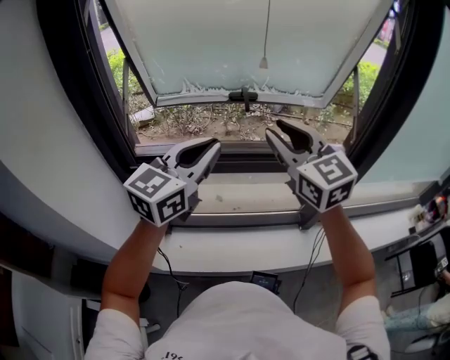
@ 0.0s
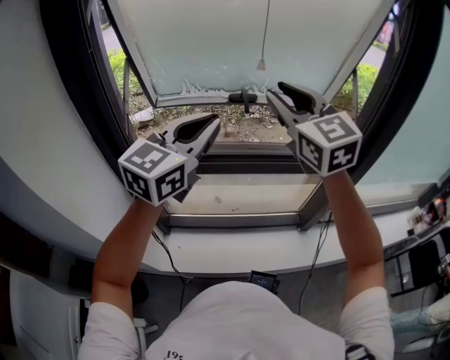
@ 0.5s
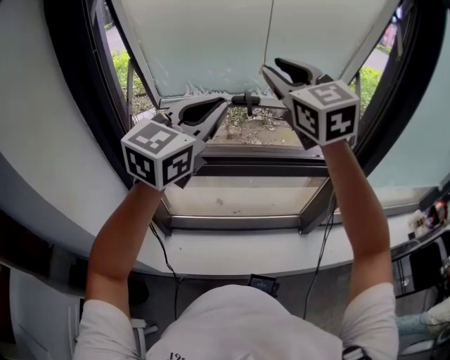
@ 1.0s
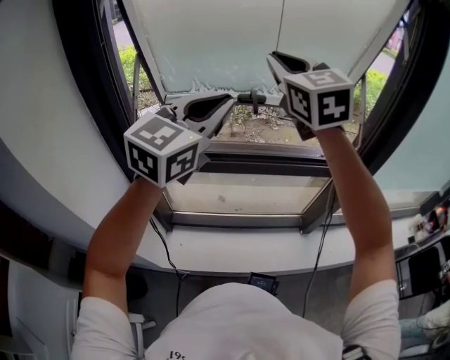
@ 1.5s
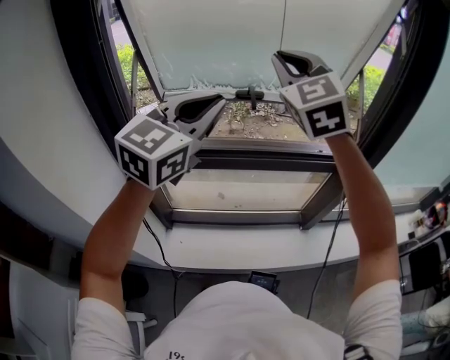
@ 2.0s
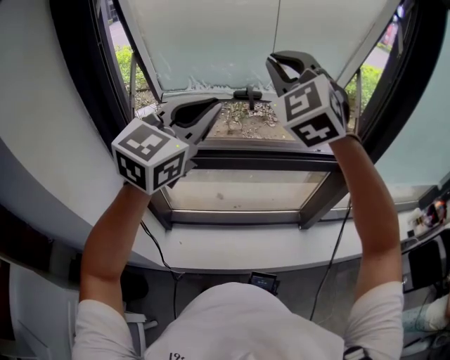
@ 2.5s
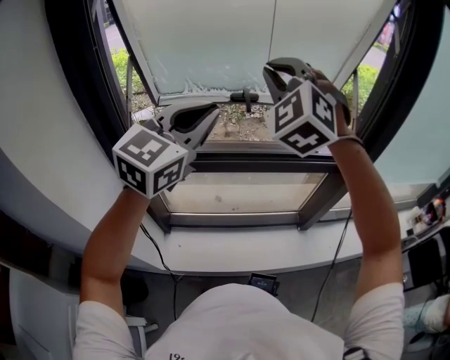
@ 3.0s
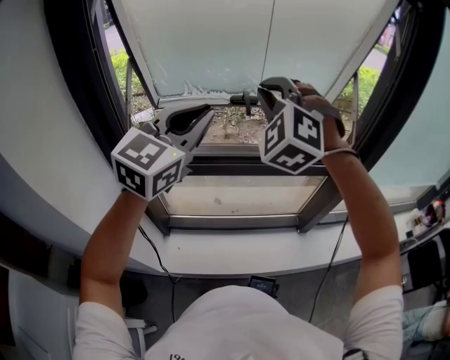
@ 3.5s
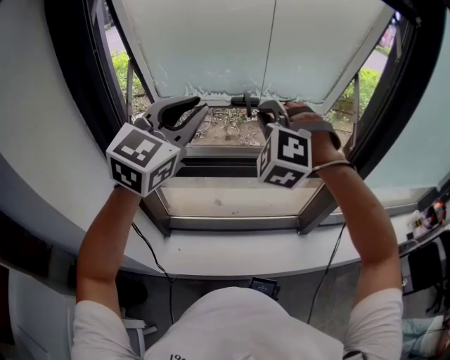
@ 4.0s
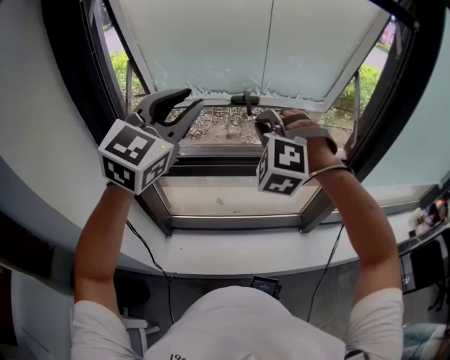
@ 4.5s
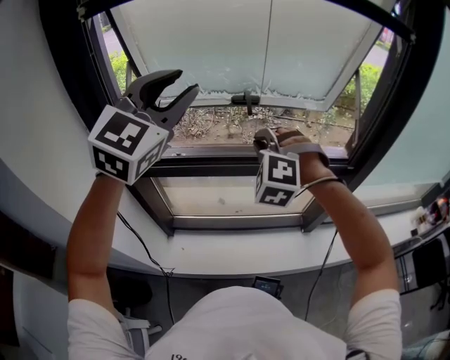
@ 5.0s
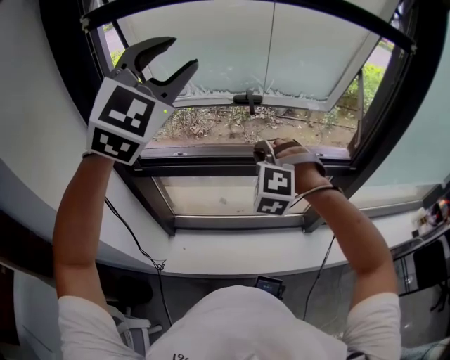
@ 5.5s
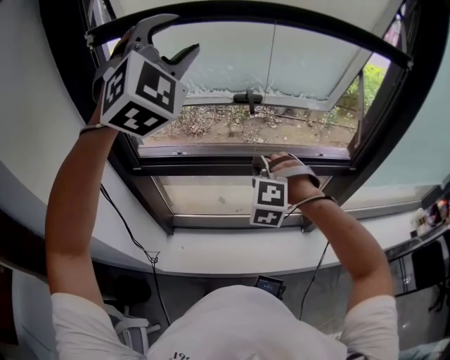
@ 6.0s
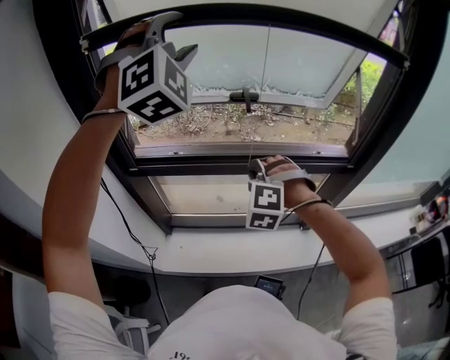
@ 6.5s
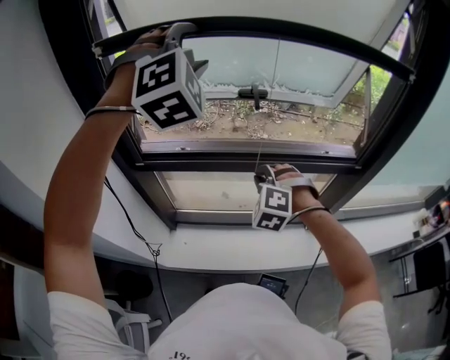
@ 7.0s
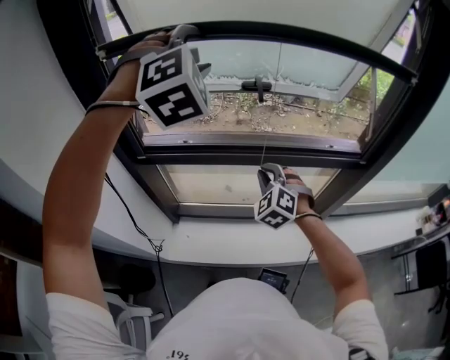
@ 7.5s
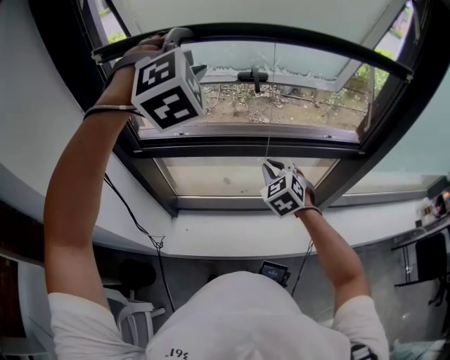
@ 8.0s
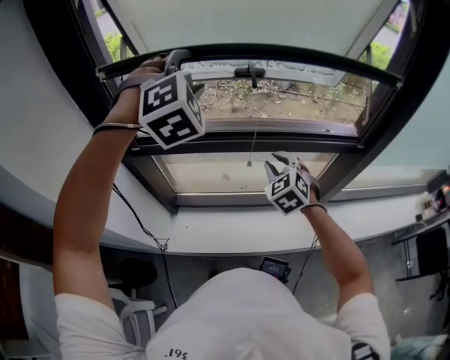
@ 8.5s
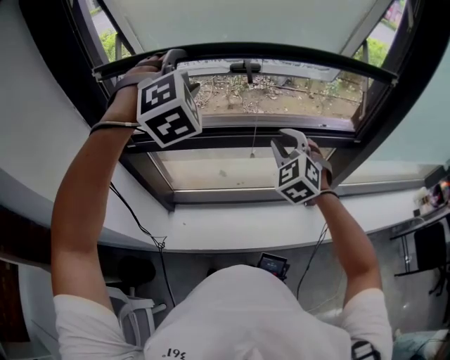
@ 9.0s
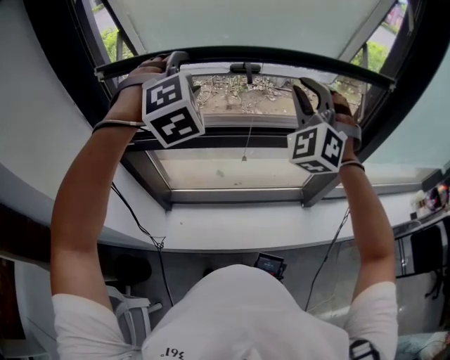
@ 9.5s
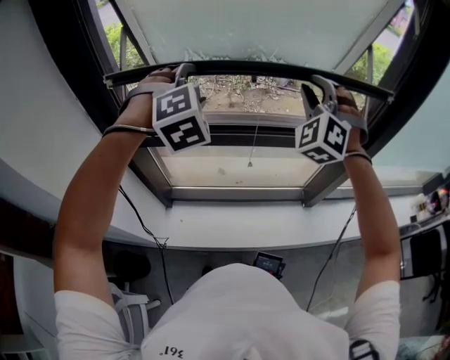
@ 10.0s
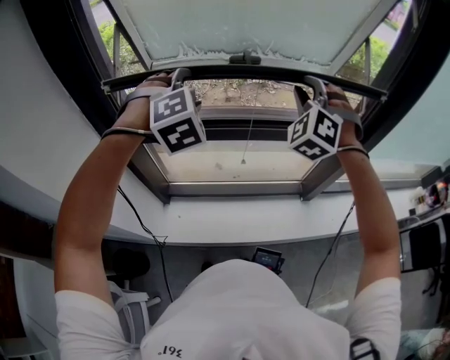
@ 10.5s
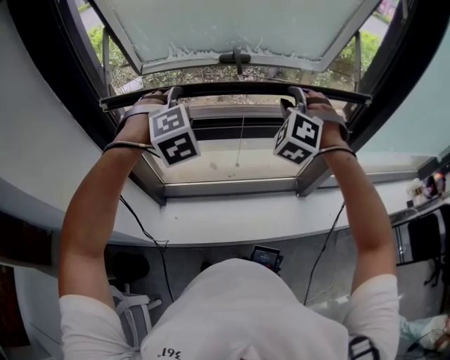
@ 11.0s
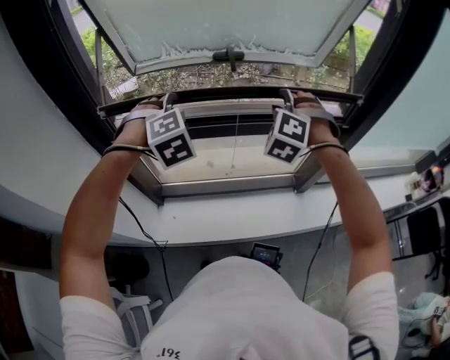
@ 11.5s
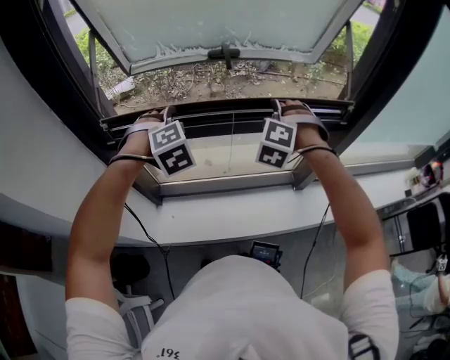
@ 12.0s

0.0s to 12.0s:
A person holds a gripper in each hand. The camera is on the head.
0.0s to 2.0s: The left gripper is displaced upward by approximately 10 cm; the right gripper goes about 15 cm upward and forward, changes its angle by approximately 30 degrees, and closes.
2.0s to 4.0s: The right gripper is displaced downward by about 15 cm, and twists roughly 40 degrees counterclockwise, seen from behind.
4.0s to 6.0s: The left gripper travels upward by roughly 10 cm, rolls clockwise, seen from behind, by some 40 degrees, and opens; the right gripper travels downward by roughly 15 cm.
6.0s to 8.0s: Both grippers travel together downward, about 10 cm. The left gripper rotates about 30 degrees; the right gripper rotates around the line of its fingers by approximately 50 degrees, clockwise from behind.
8.0s to 10.0s: The left gripper travels downward by approximately 10 cm. Meanwhile the right gripper travels upward by about 25 cm, and rotates roughly 50 degrees.
10.0s to 12.0s: Both grippers move downward, about 15 cm. The right gripper tips its fingers downward by approximately 30 degrees.

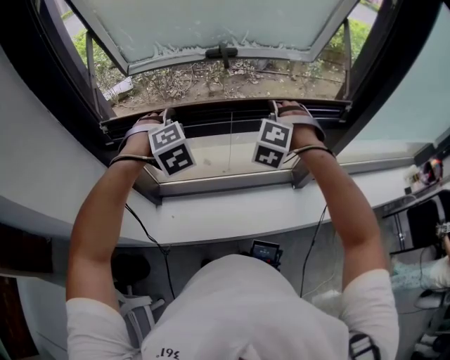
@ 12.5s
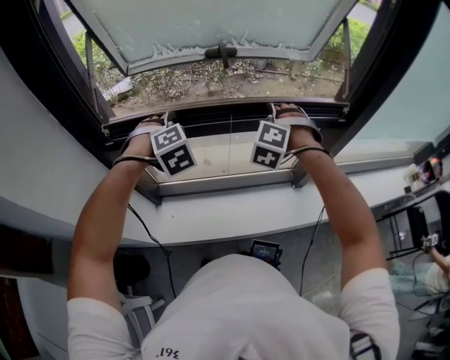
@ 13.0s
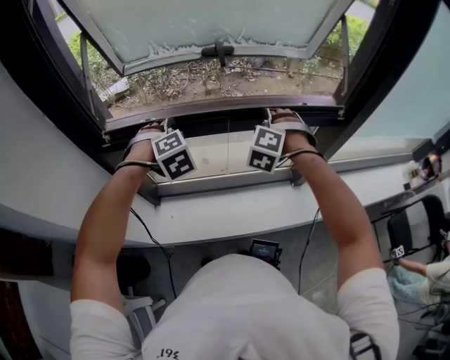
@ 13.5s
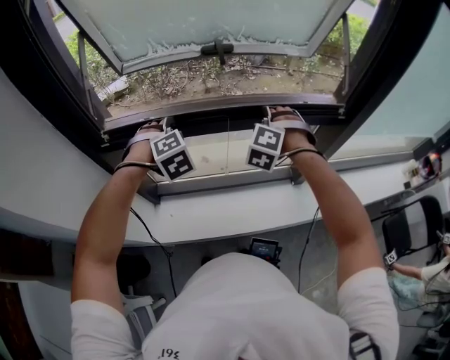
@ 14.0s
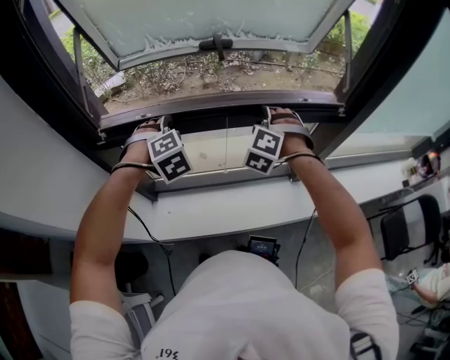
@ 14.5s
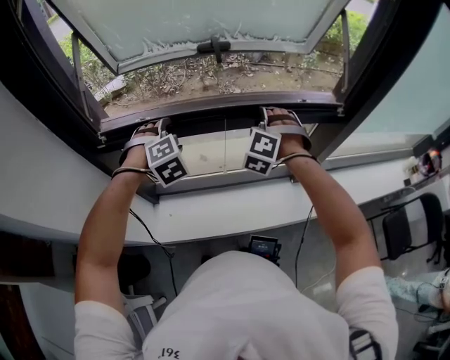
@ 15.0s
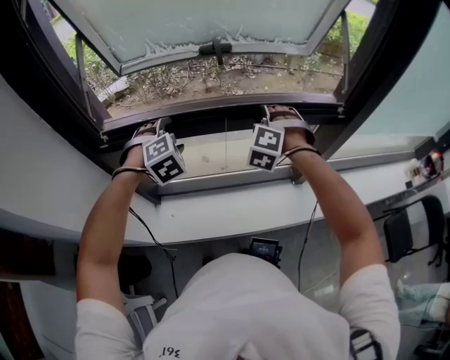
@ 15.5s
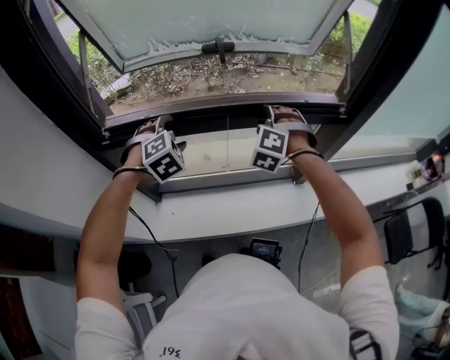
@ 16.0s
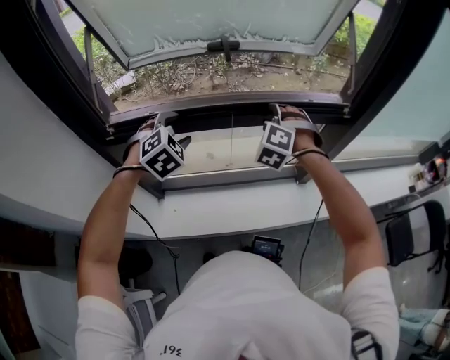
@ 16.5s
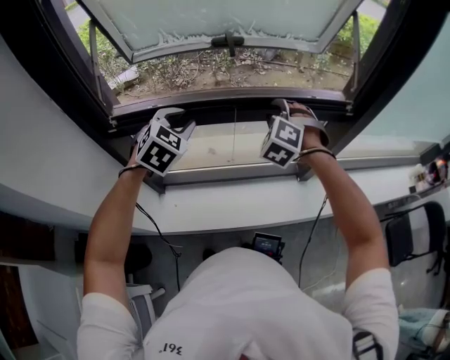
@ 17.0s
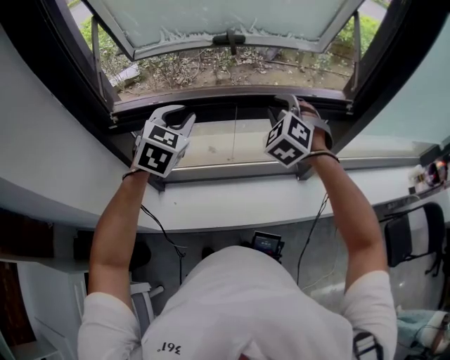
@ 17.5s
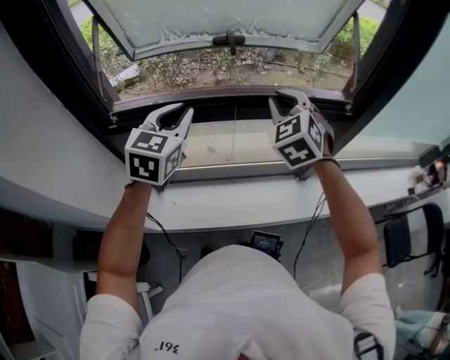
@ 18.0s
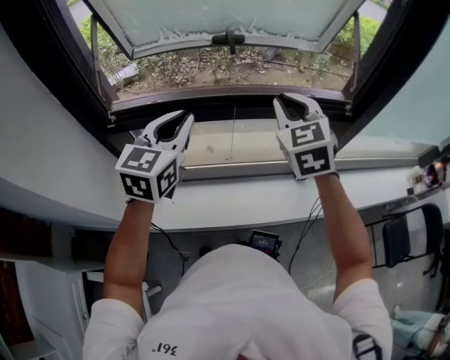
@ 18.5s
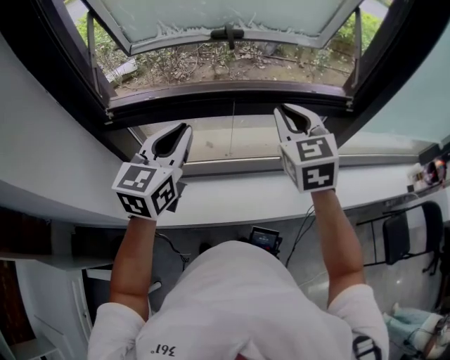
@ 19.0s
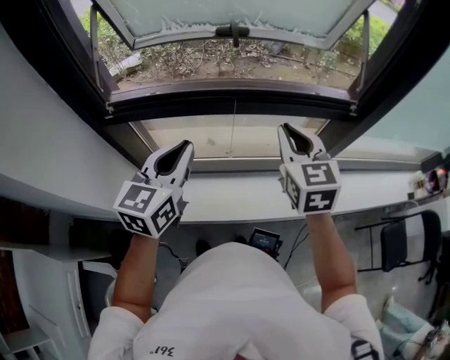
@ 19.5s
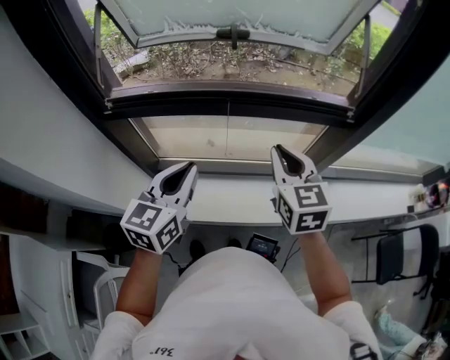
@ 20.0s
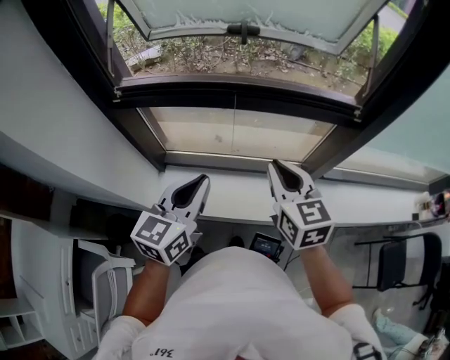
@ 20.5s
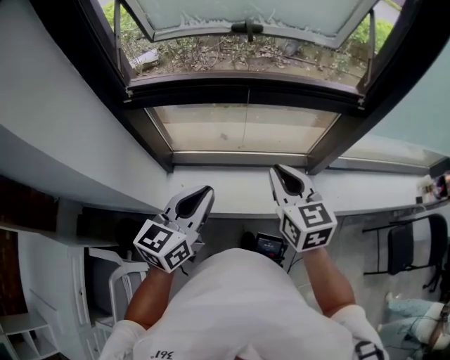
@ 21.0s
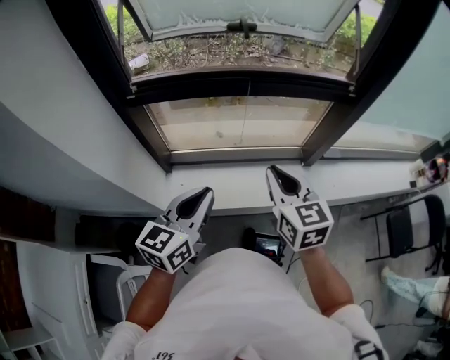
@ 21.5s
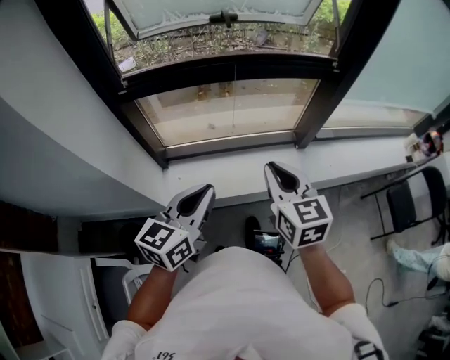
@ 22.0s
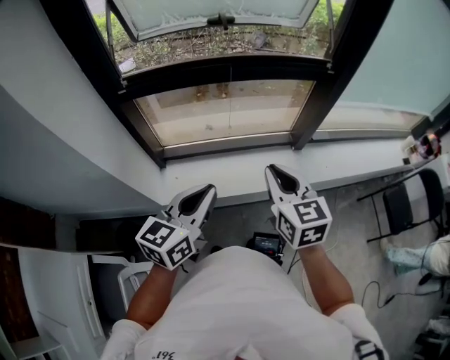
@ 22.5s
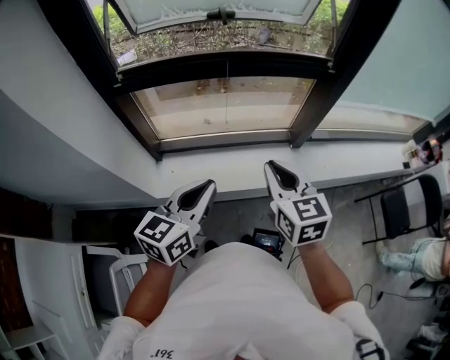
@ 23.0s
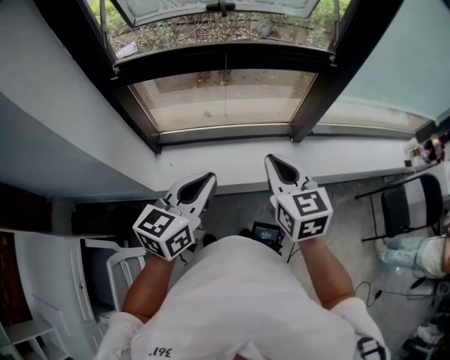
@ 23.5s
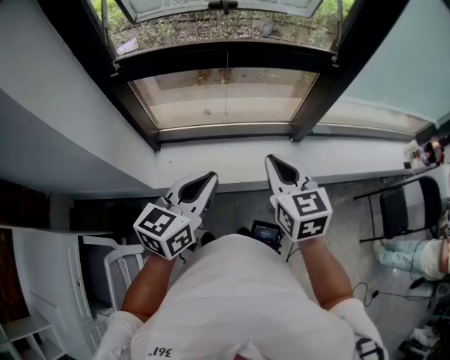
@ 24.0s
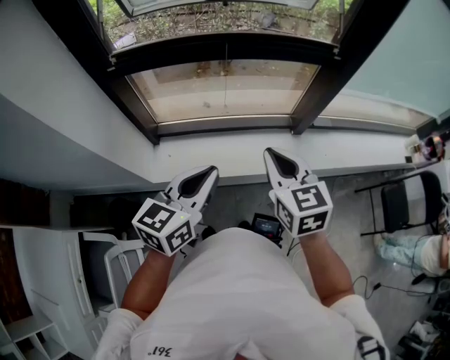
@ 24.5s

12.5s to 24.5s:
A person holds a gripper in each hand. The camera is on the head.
12.5s to 14.5s: The left gripper travels downward by about 5 cm.
14.5s to 16.5s: There are only small adjustments of the grippers.
16.5s to 18.5s: Both grippers move upward and backward, some 15 cm. The right gripper twists approximately 40 degrees clockwise, seen from behind; the left gripper tips its fingers upward by roughly 30 degrees, and closes its fingers.
18.5s to 20.5s: The right gripper goes roughly 15 cm backward and downward, and swivels roughly 30 degrees. Meanwhile the left gripper travels backward, downward and to the right by roughly 20 cm.
20.5s to 22.5s: The grippers both shift backward by some 15 cm.
22.5s to 24.5s: The grippers move only a little.

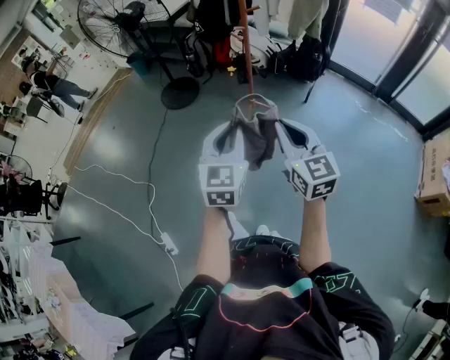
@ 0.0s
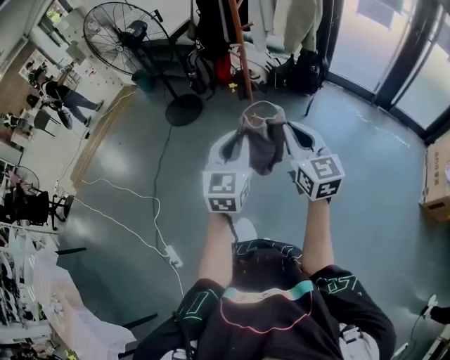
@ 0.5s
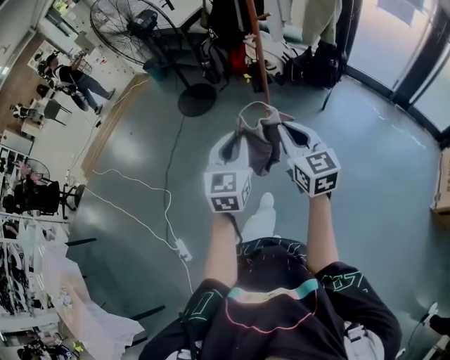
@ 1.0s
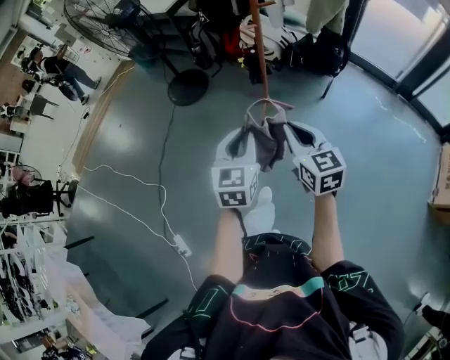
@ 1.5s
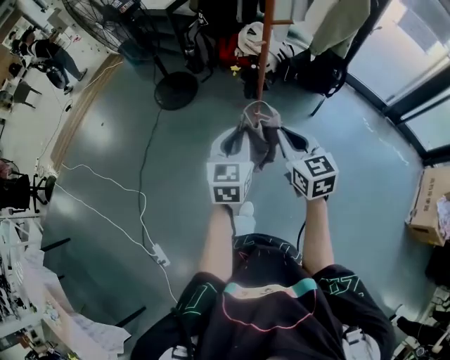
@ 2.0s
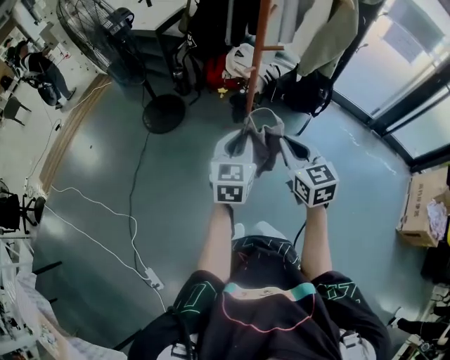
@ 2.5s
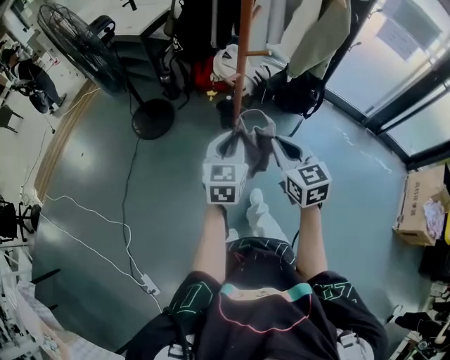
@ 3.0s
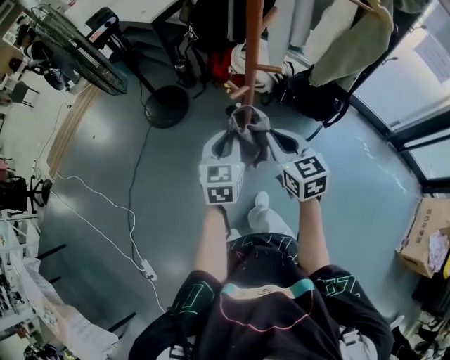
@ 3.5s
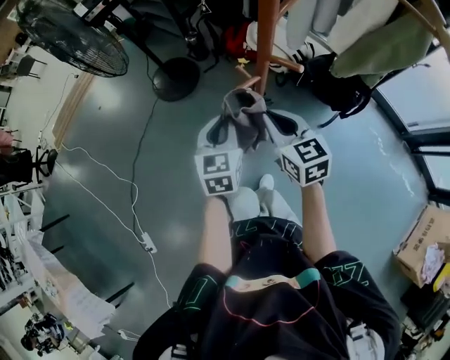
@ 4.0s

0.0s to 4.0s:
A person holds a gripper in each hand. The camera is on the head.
0.0s to 2.0s: The grippers both shift forward by roughly 25 cm.
2.0s to 4.0s: The grippers both shift forward by about 25 cm.
